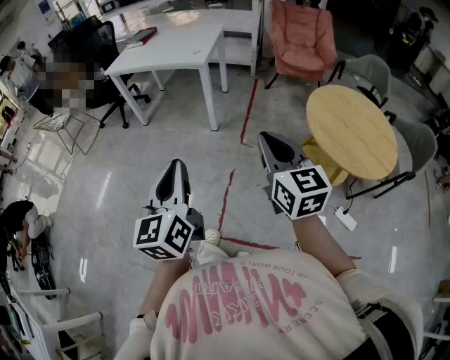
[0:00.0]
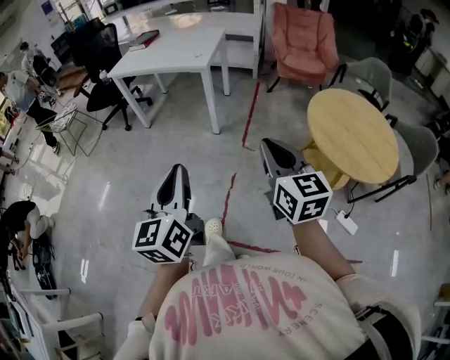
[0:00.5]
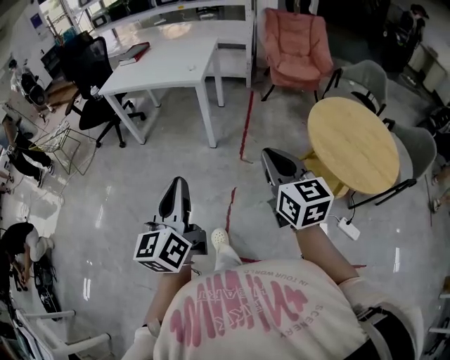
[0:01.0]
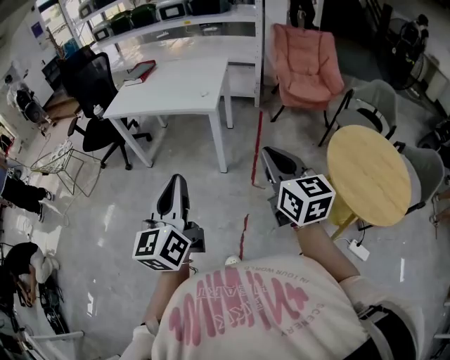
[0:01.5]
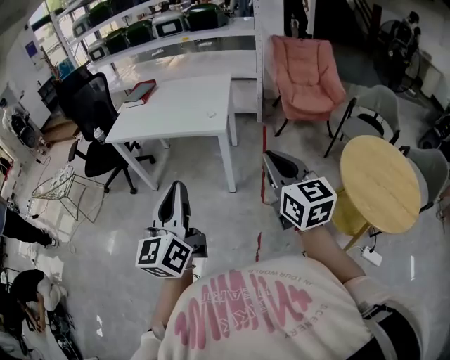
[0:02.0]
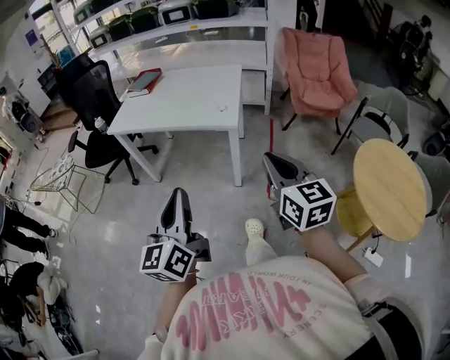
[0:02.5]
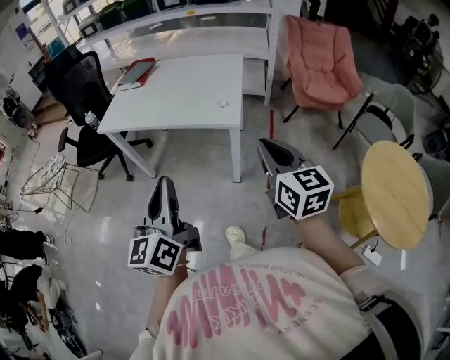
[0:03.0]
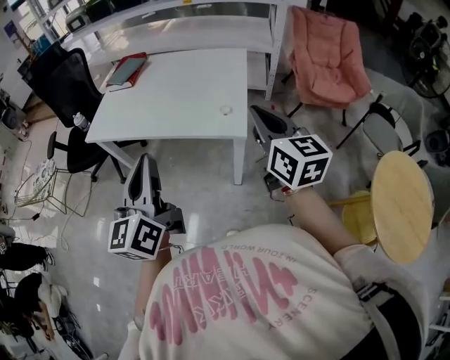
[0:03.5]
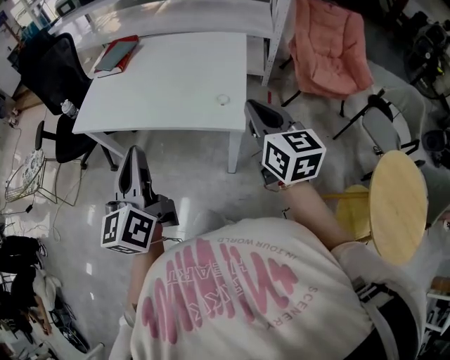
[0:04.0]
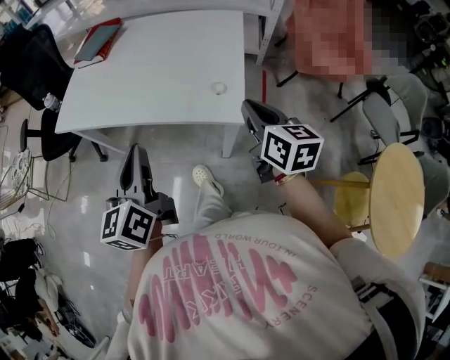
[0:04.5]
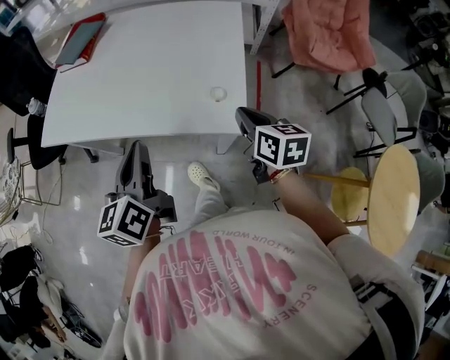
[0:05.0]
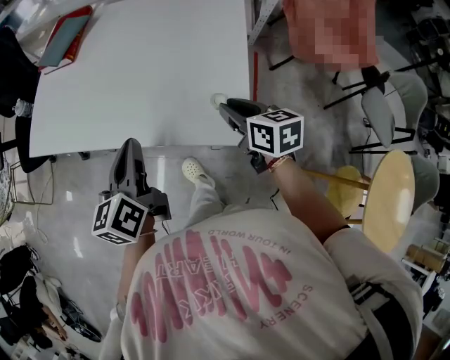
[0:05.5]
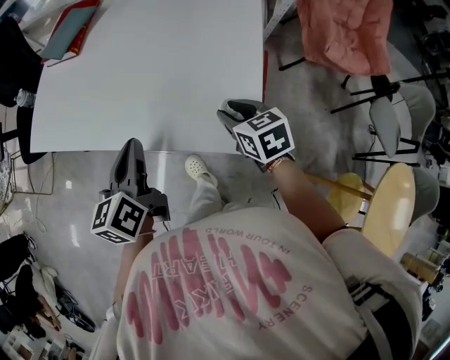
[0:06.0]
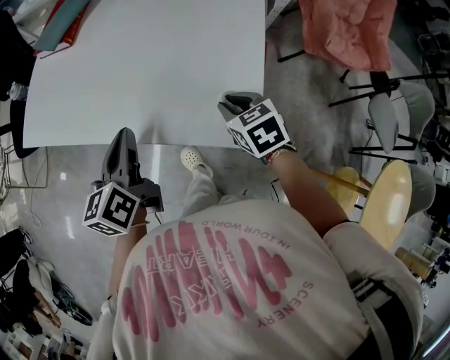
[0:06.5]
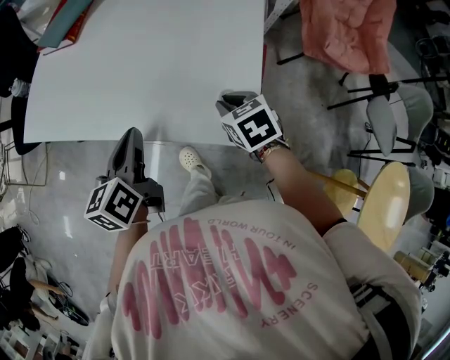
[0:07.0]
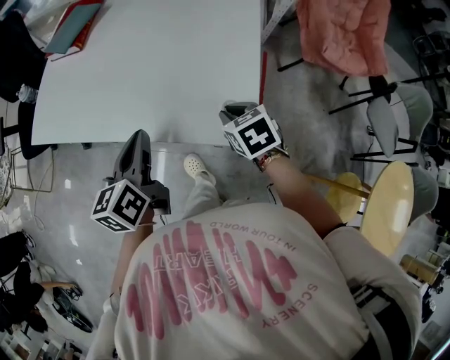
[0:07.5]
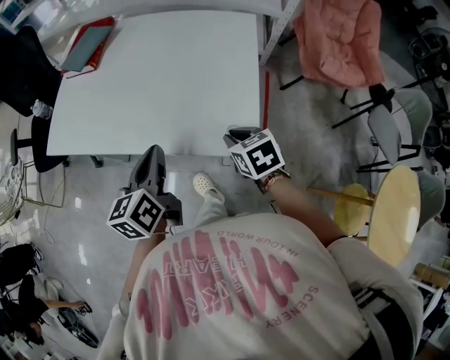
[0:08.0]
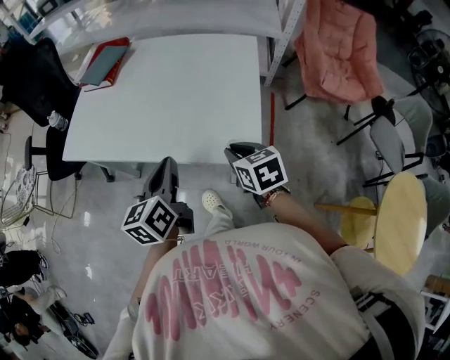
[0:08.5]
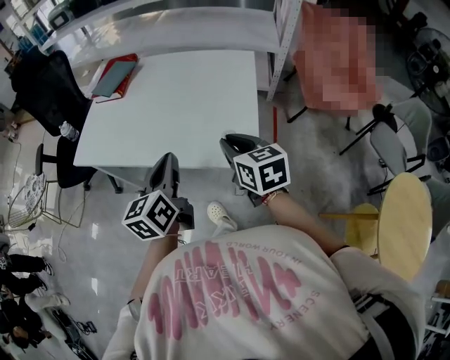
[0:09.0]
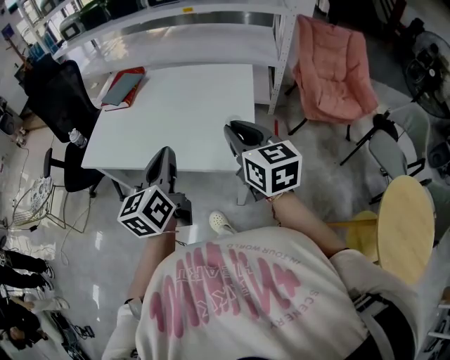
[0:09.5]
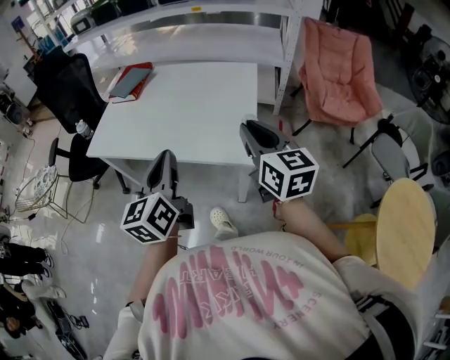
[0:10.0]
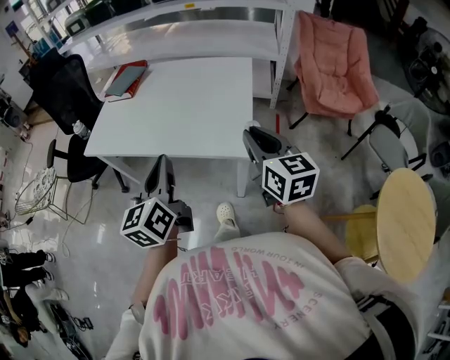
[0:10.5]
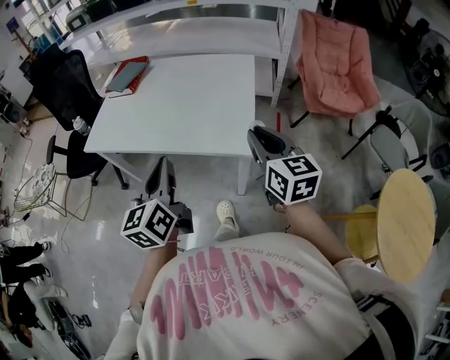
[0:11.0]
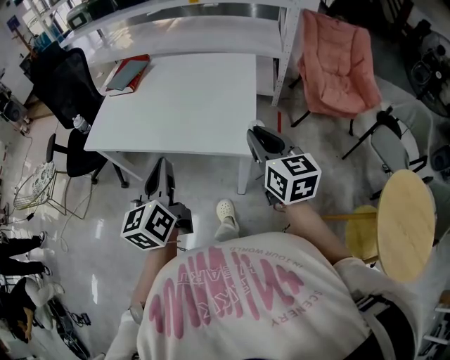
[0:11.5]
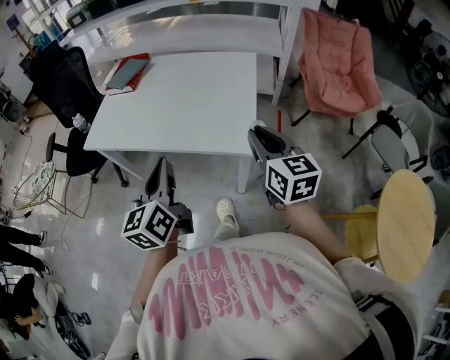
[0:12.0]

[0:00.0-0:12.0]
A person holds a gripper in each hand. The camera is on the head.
0:00.0 to 0:02.0: The two grippers travel together, forward, some 40 cm.
0:02.0 to 0:04.0: Both grippers are carried forward, some 50 cm.
0:04.0 to 0:06.0: The two grippers go roughly 35 cm forward and downward. The left gripper rotates approximately 30 degrees. Meanwhile the right gripper tilts its fingers some 40 degrees downward, and opens up.
0:06.0 to 0:08.0: The right gripper moves backward, roughly 5 cm; the left gripper shifts by roughly 5 cm.
0:08.0 to 0:10.0: The right gripper shifts approximately 30 cm upward and backward, and tilts its fingers roughly 40 degrees upward. The left gripper is displaced backward and upward by approximately 25 cm, and swivels roughly 20 degrees.
0:10.0 to 0:12.0: The right gripper heads downward, covering about 5 cm. Meanwhile the left gripper changes place by about 5 cm.

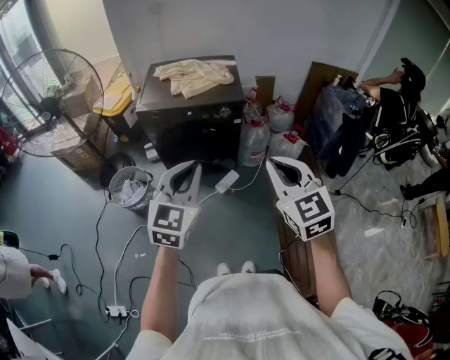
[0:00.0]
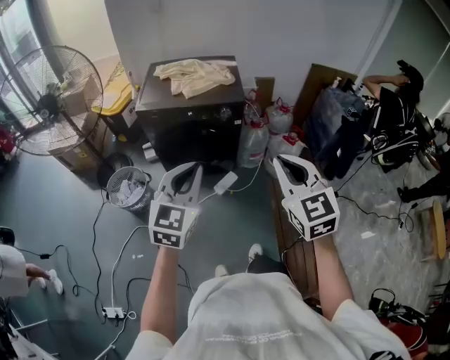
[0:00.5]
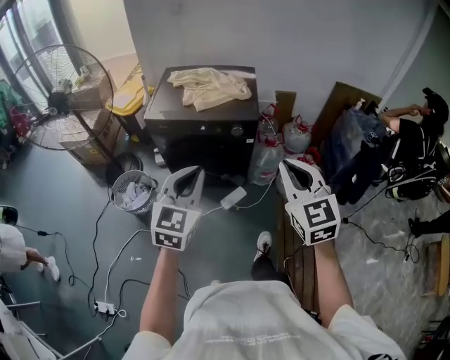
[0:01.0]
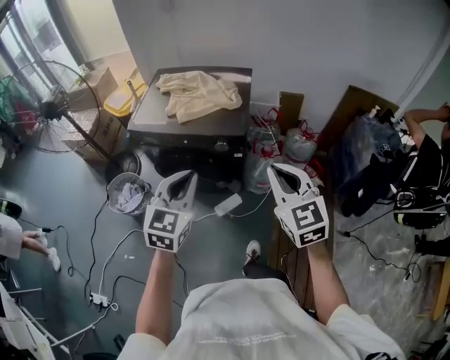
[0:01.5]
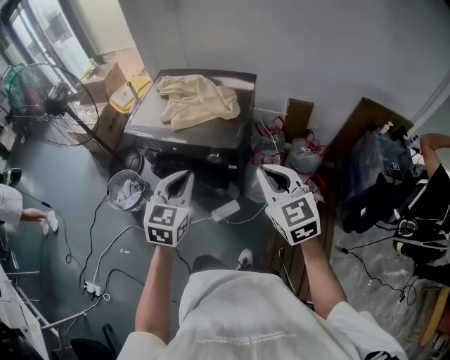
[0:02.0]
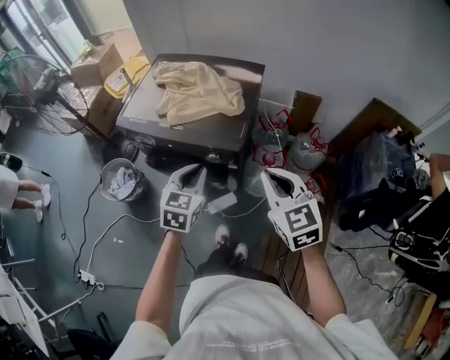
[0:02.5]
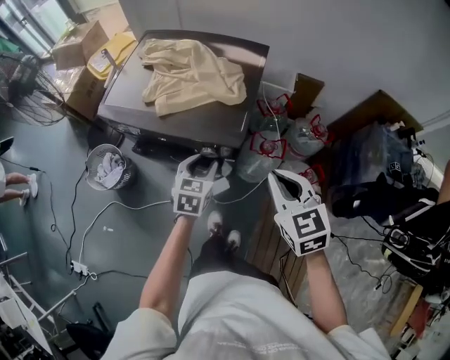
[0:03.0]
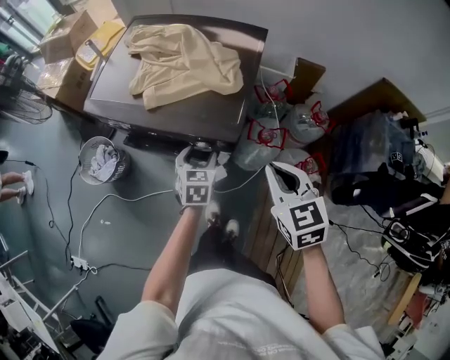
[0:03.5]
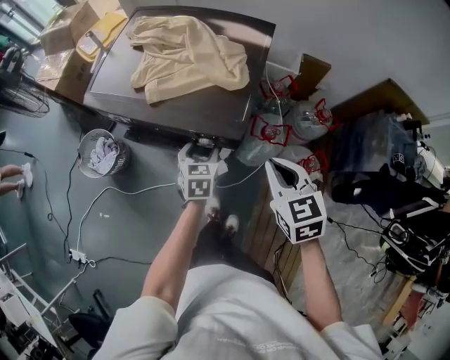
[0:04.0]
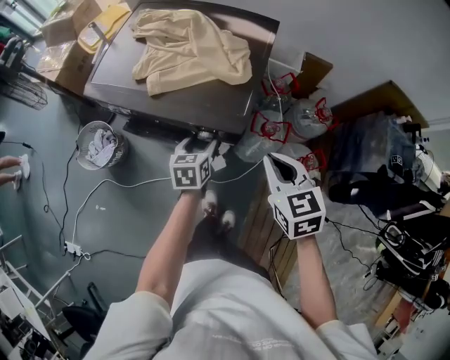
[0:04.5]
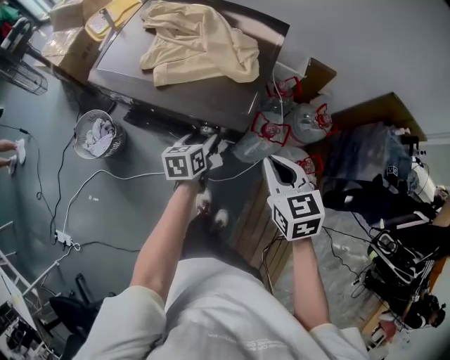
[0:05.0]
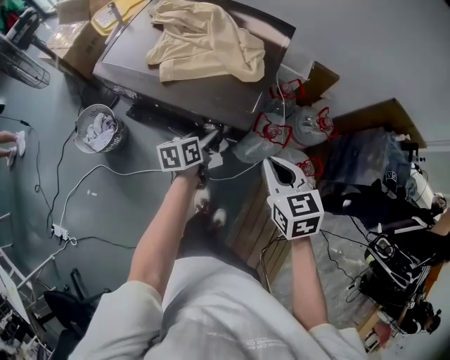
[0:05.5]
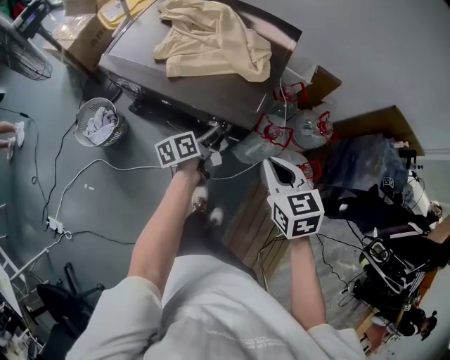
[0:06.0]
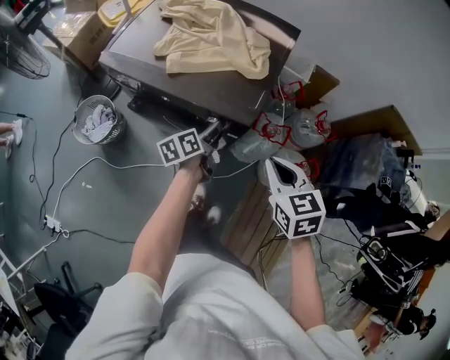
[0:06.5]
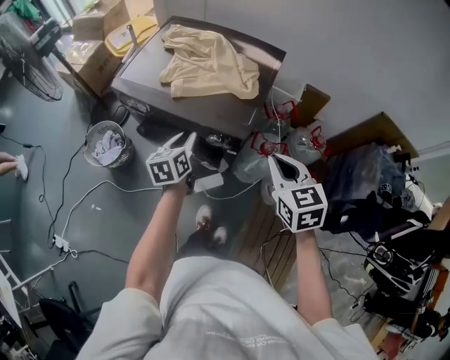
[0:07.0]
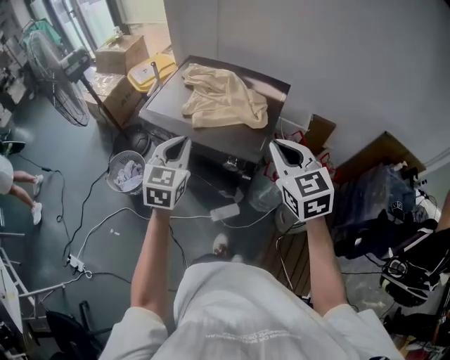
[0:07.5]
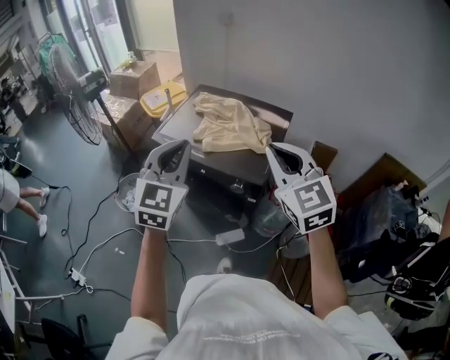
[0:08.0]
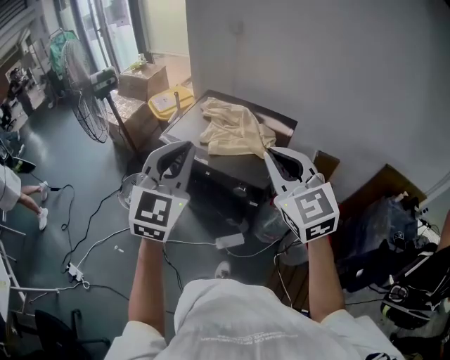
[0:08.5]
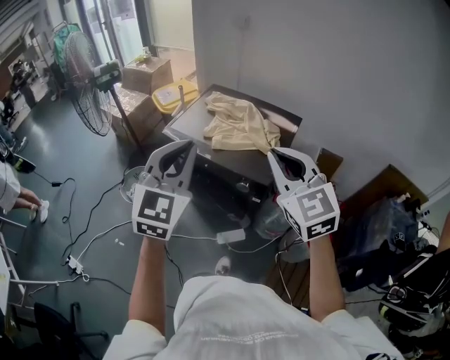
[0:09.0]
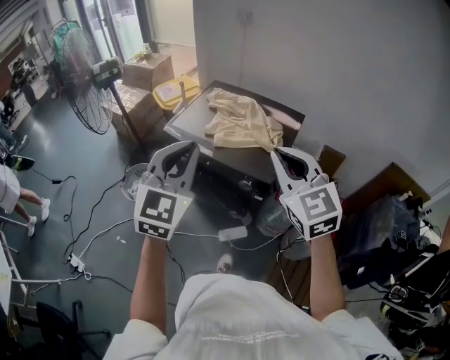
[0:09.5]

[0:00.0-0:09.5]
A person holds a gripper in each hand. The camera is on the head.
0:00.0 to 0:02.0: Both grippers move forward and to the right, some 35 cm. The left gripper changes its angle by approximately 20 degrees.
0:02.0 to 0:04.0: The right gripper is displaced downward and forward by about 20 cm, and changes its angle by approximately 20 degrees. The left gripper moves downward and forward, approximately 30 cm, changes its angle by about 30 degrees, and opens up.
0:04.0 to 0:05.5: The left gripper swivels some 40 degrees.
0:05.5 to 0:07.5: The right gripper travels upward by some 20 cm, and turns by approximately 30 degrees. Meanwhile the left gripper heads upward and to the left, covering approximately 30 cm, twists about 50 degrees clockwise, seen from behind, and closes.
0:07.5 to 0:09.5: The right gripper goes approximately 10 cm upward and to the left. Meanwhile the left gripper is displaced upward and backward by approximately 20 cm.

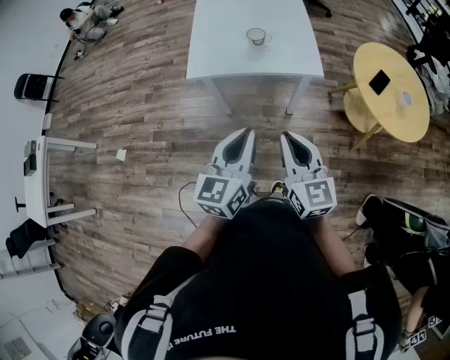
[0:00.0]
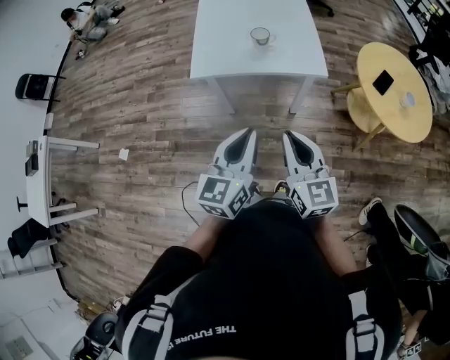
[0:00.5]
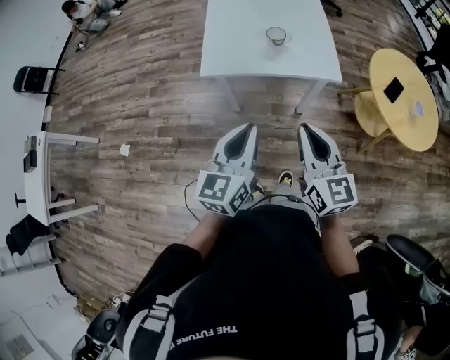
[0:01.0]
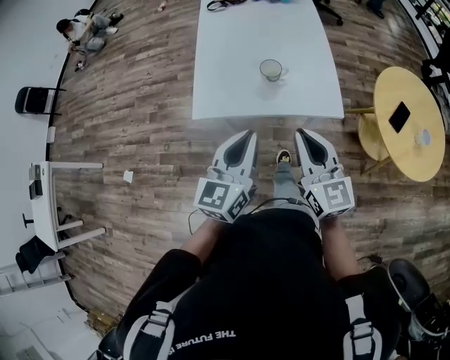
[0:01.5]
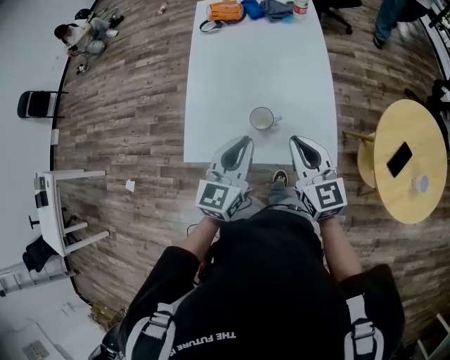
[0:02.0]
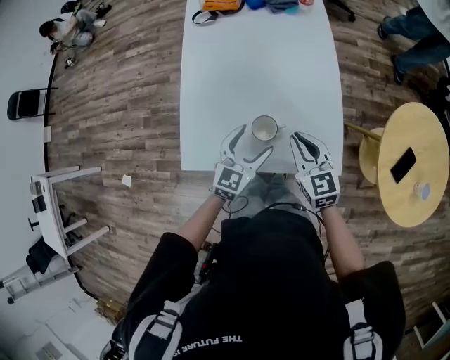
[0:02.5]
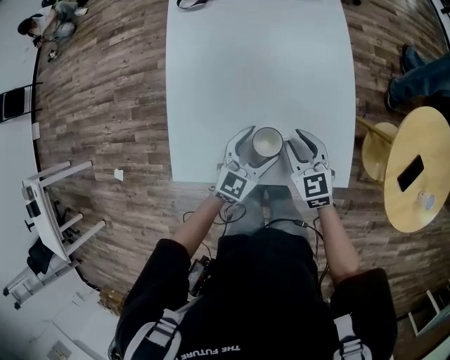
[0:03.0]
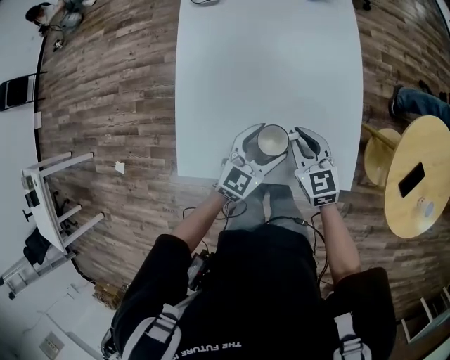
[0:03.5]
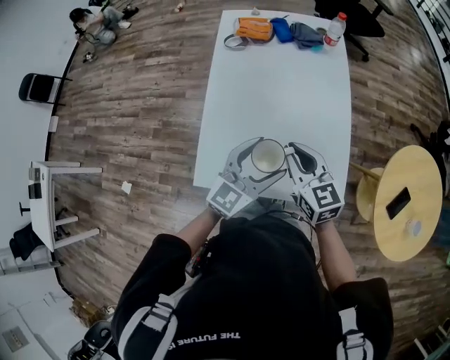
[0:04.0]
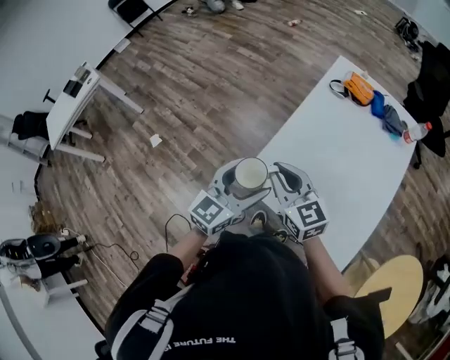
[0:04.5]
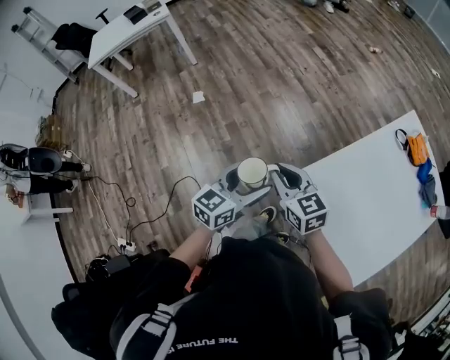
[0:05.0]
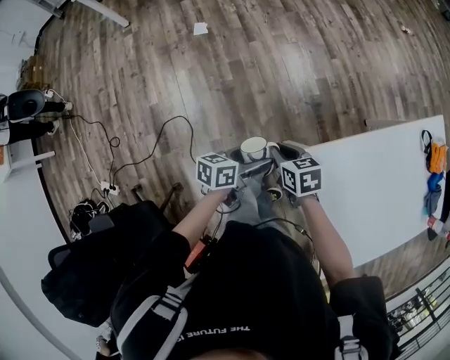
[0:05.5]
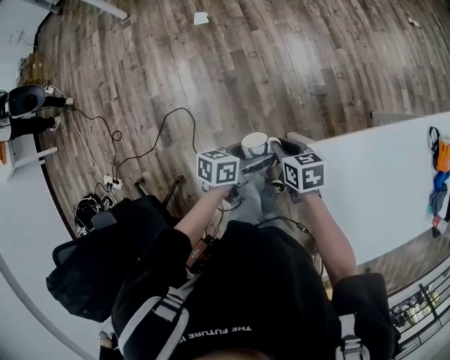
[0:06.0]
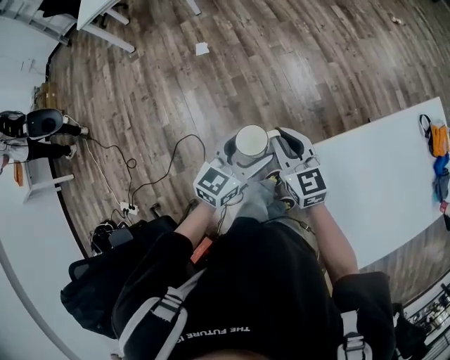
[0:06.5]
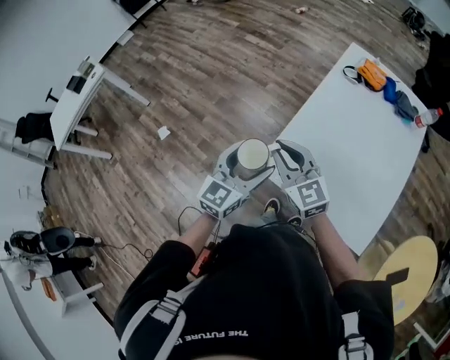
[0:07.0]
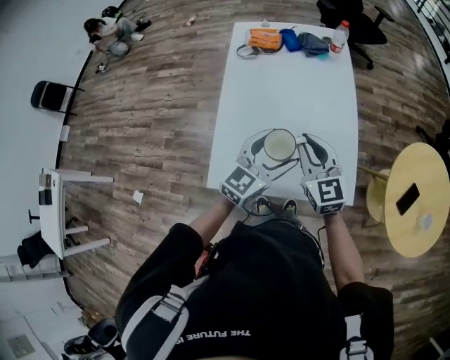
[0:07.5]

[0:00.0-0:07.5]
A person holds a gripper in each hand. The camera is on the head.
0:00.0 to 0:02.0: The two grippers travel together, forward, about 40 cm.
0:02.0 to 0:04.0: The left gripper moves forward, roughly 10 cm, goes downward and returns, roughly 20 cm each way, changes its angle by some 20 degrees, and opens its fingers. Meanwhile the right gripper moves forward and to the left, roughly 15 cm, and travels downward and back again, some 20 cm each way.
0:04.0 to 0:05.5: Both grippers are carried roughly 50 cm. The right gripper tips its fingers downward by approximately 30 degrees. Meanwhile the left gripper rotates about 90 degrees.
0:05.5 to 0:07.5: Both grippers are carried approximately 50 cm. The right gripper tilts its fingers about 40 degrees upward. Meanwhile the left gripper swivels about 90 degrees.
